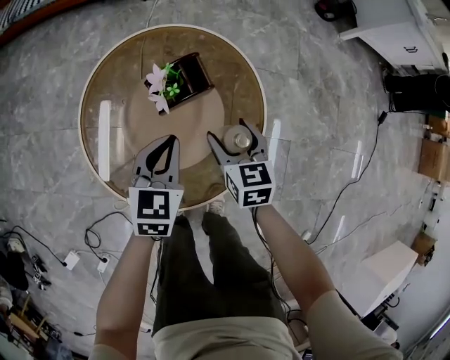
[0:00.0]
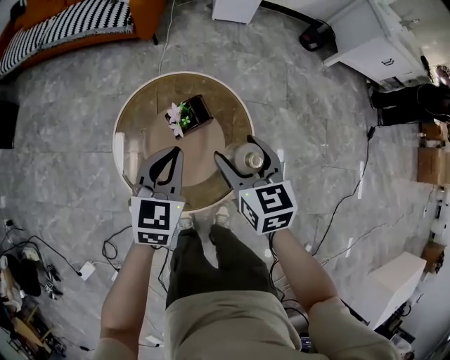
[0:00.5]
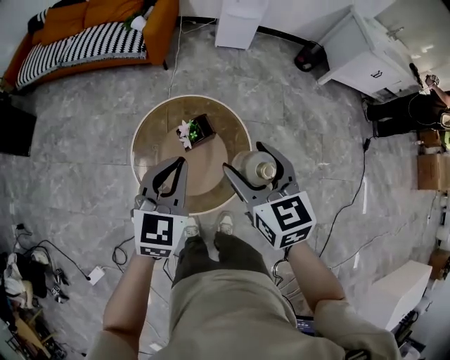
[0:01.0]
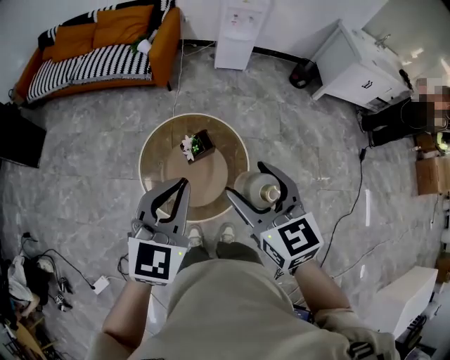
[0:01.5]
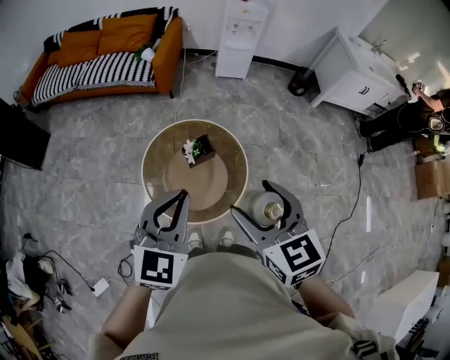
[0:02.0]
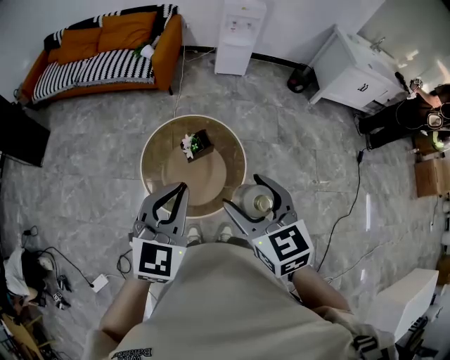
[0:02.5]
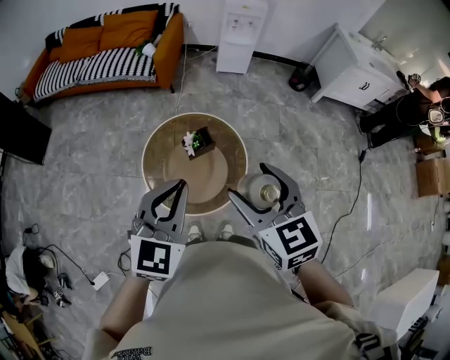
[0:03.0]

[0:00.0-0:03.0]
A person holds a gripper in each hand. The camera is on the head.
0:00.0 to 0:01.5: The two grippers go roughly 50 cm upward. The right gripper turns by about 20 degrees; the left gripper rotates approximately 20 degrees.
0:01.5 to 0:03.0: Both grippers travel together backward, approximately 5 cm.

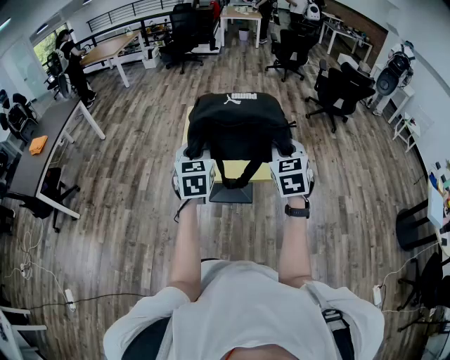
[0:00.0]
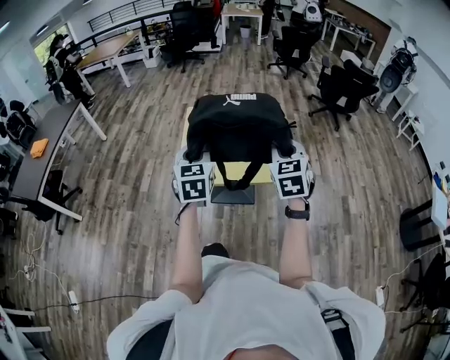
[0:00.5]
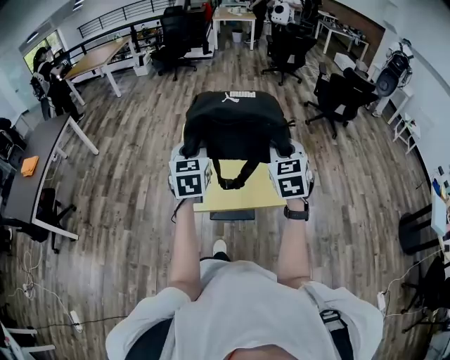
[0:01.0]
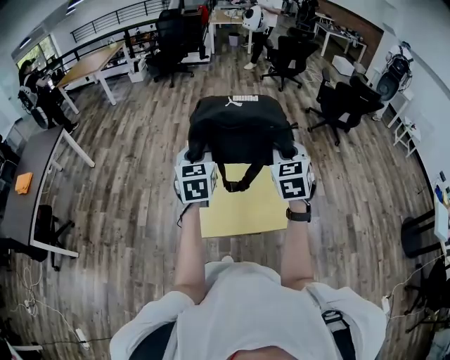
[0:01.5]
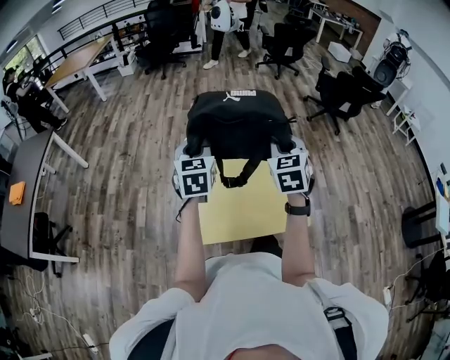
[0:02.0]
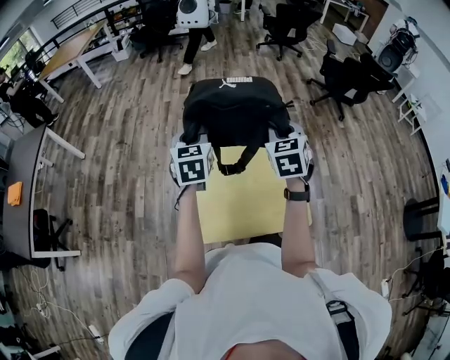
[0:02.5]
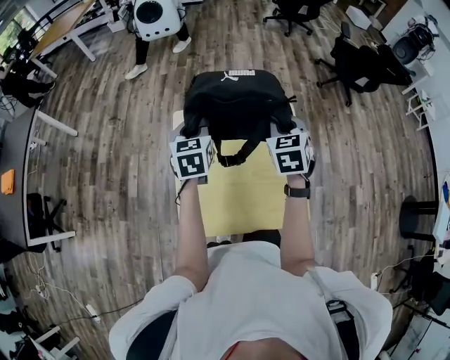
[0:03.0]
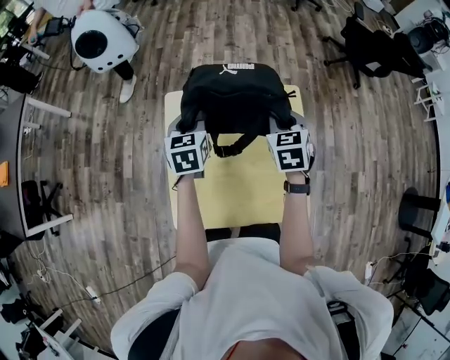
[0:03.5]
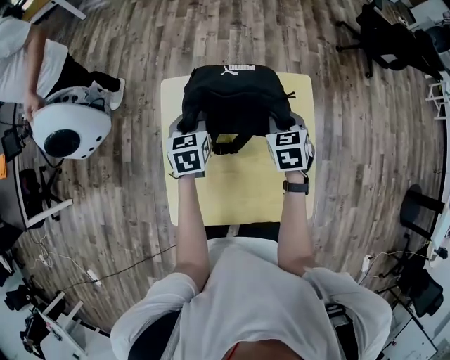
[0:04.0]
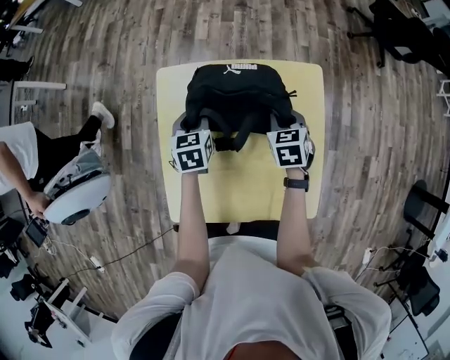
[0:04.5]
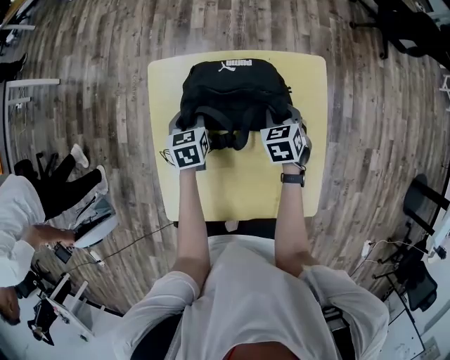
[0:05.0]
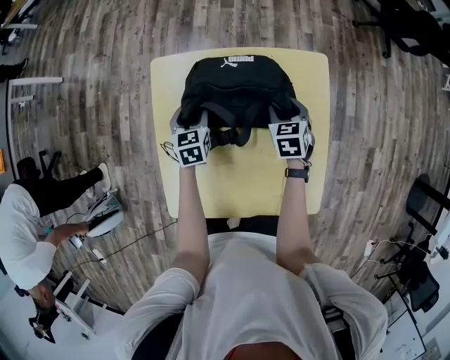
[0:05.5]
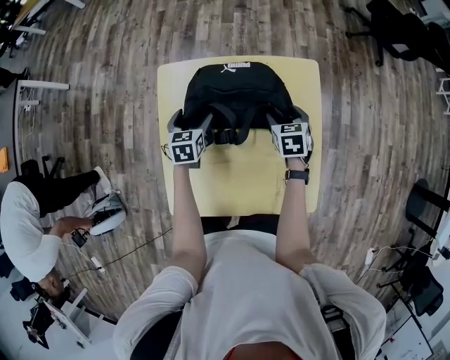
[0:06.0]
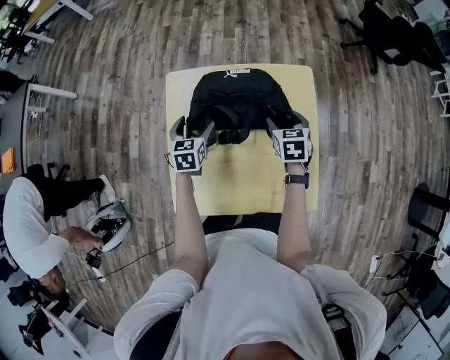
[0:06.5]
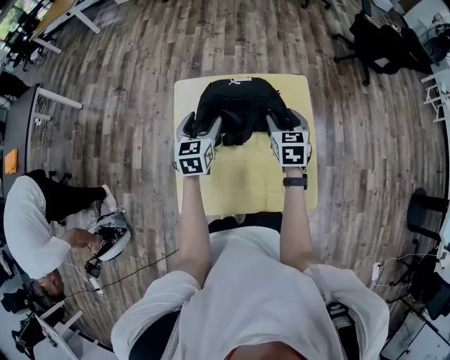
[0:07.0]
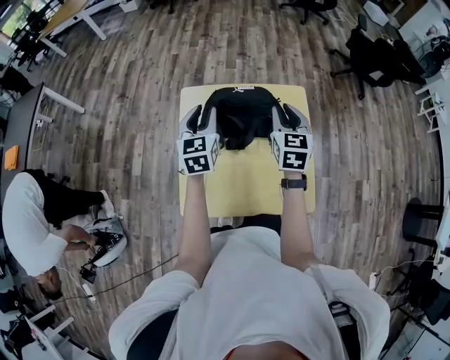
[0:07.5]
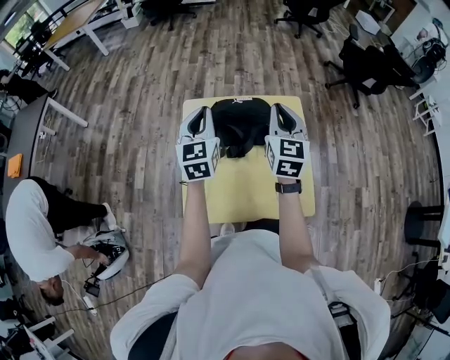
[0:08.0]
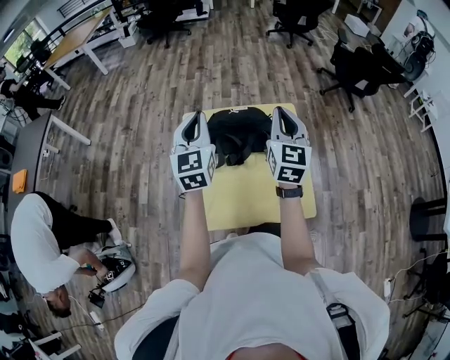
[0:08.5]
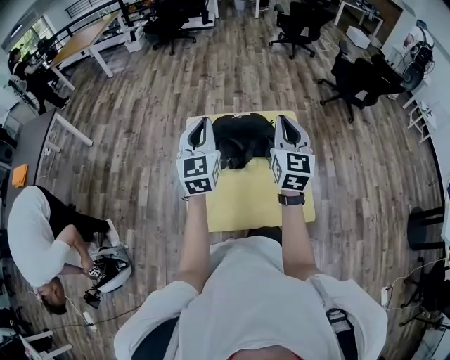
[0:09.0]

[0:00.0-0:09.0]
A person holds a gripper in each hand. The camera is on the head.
0:00.0 to 0:02.0: The grippers both shift forward by approximately 35 cm.
0:02.0 to 0:04.5: Both grippers move downward and forward, some 40 cm. The right gripper rotates some 30 degrees; the left gripper changes its angle by approximately 30 degrees.
0:04.5 to 0:07.0: Both grippers move upward and backward, roughly 10 cm. The left gripper opens its fingers, while the right gripper opens its fingers.
0:07.0 to 0:09.0: The two grippers go approximately 20 cm upward. The right gripper tilts its fingers roughly 30 degrees upward, and closes its fingers. The left gripper changes its angle by some 30 degrees, and closes its fingers.

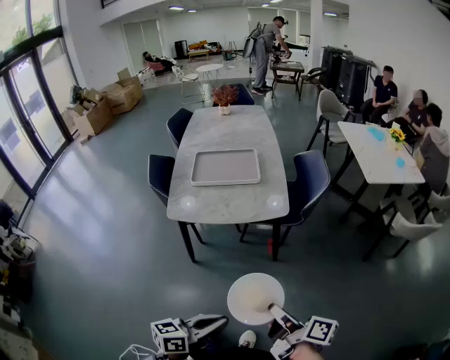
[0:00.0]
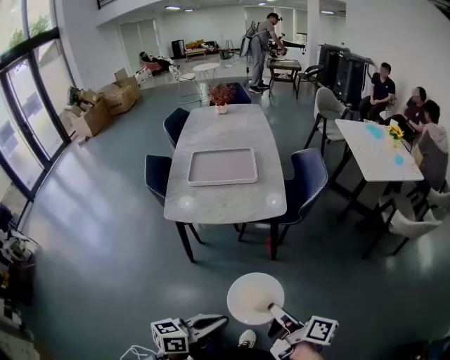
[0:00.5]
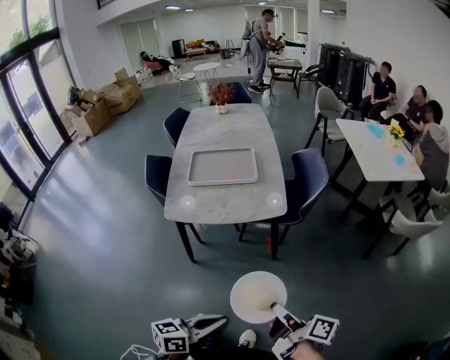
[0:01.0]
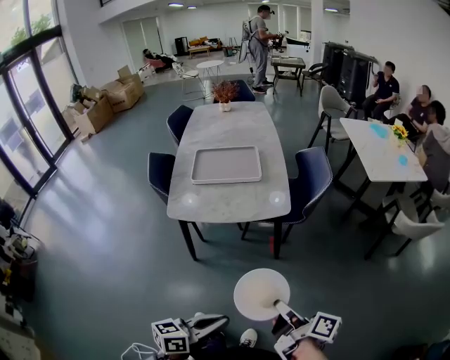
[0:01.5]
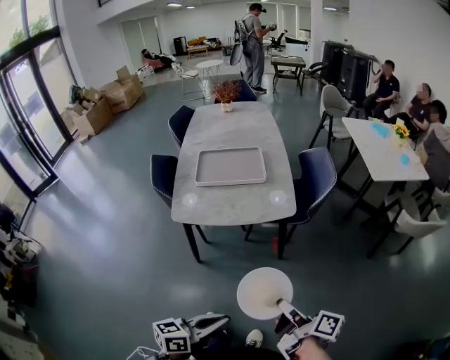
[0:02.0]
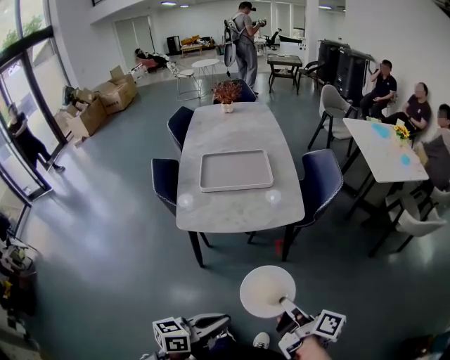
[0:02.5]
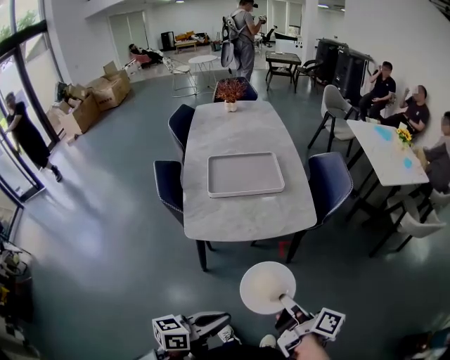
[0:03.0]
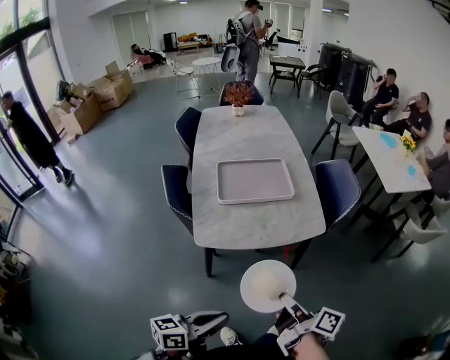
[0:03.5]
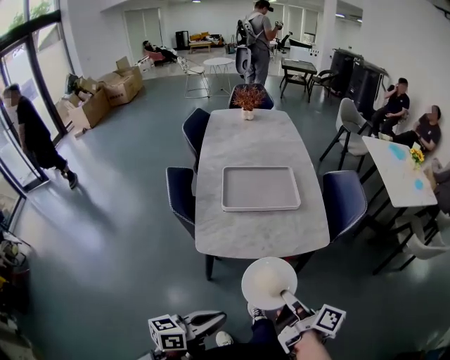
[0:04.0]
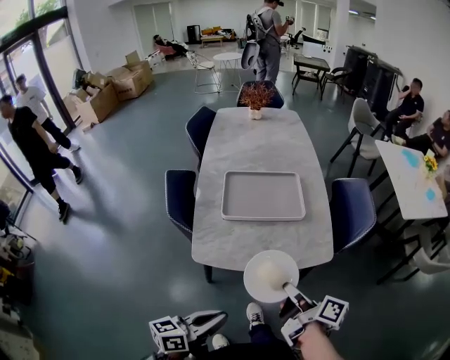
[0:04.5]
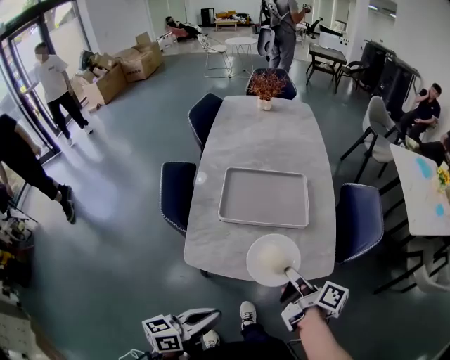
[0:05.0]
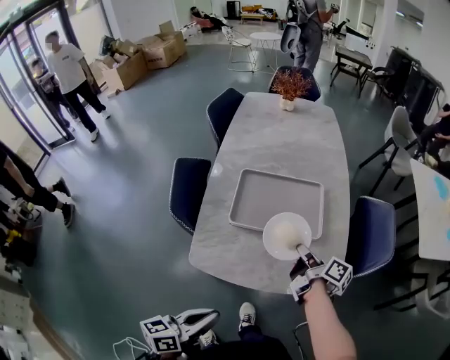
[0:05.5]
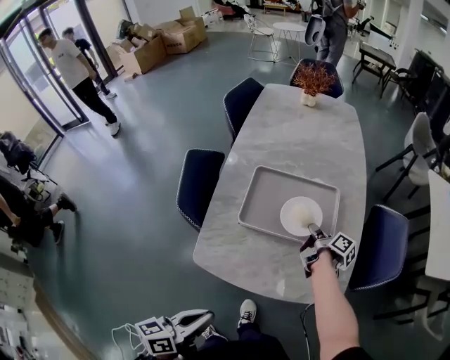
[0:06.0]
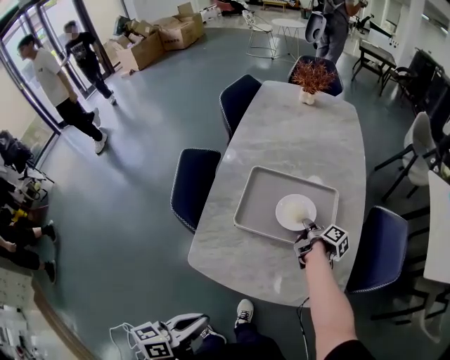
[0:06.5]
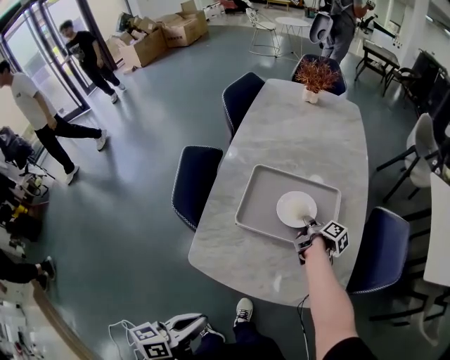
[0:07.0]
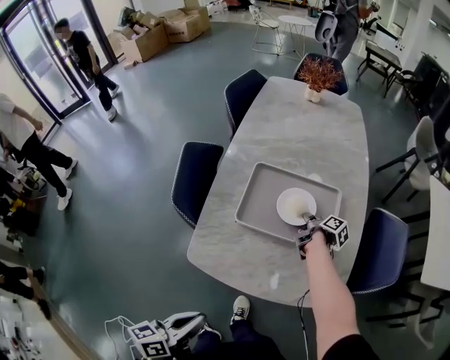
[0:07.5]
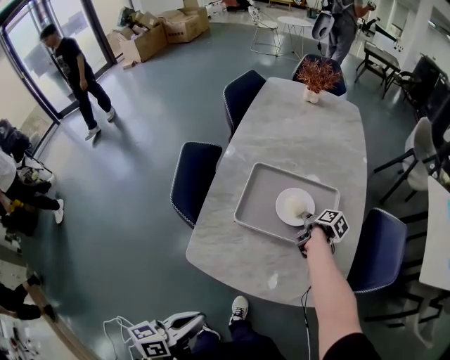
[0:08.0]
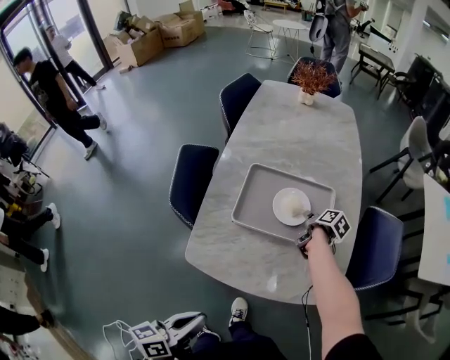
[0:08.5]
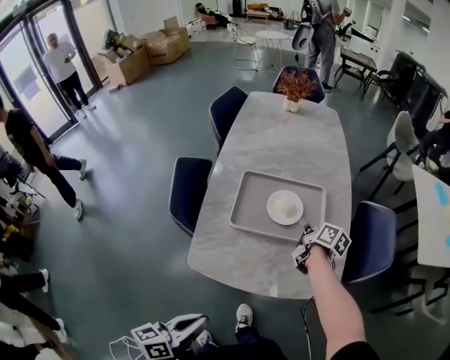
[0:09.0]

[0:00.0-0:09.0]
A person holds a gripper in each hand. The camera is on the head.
0:02.0 to 0:04.5: The left gripper shifts by about 25 cm.
0:04.5 to 0:07.0: The left gripper ends up some 10 cm from where it was, and turns by some 30 degrees.

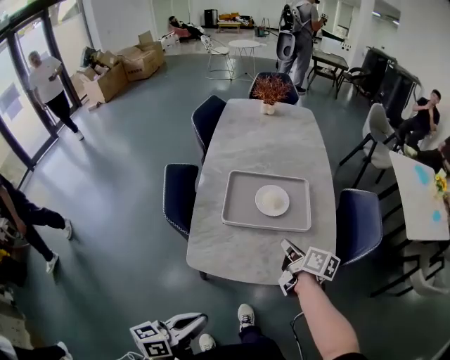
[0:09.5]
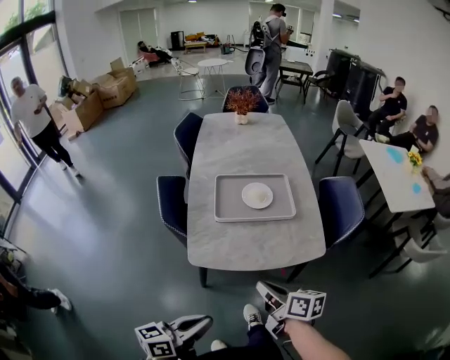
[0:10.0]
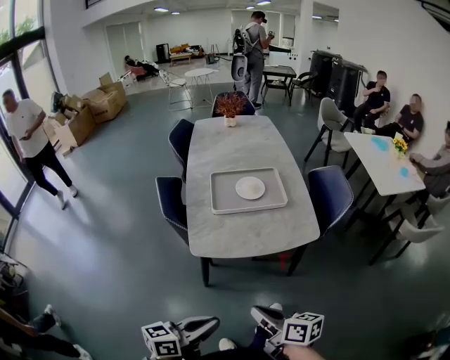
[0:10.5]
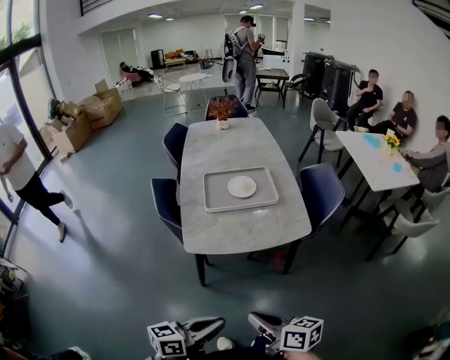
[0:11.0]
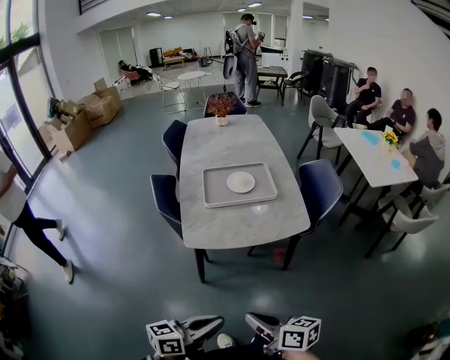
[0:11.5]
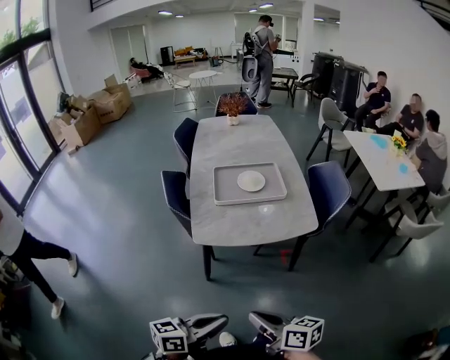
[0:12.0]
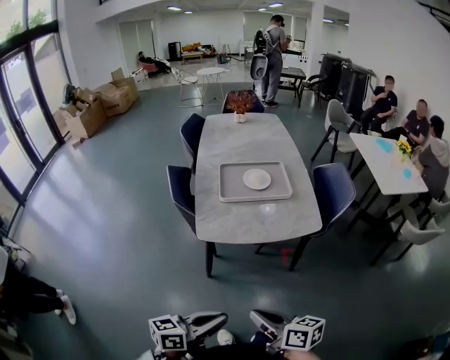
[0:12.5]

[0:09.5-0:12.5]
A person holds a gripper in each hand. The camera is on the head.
0:09.5 to 0:11.0: The left gripper changes place by some 15 cm, and turns by approximately 20 degrees.

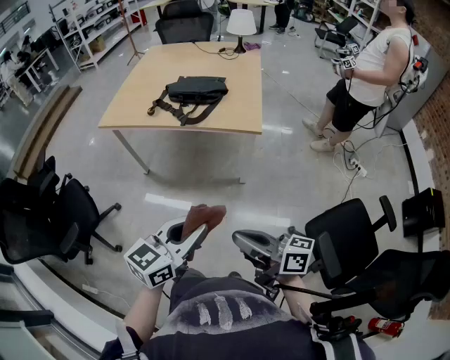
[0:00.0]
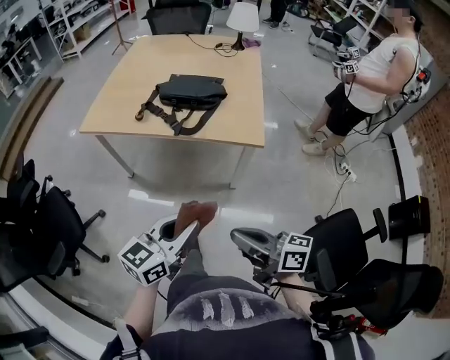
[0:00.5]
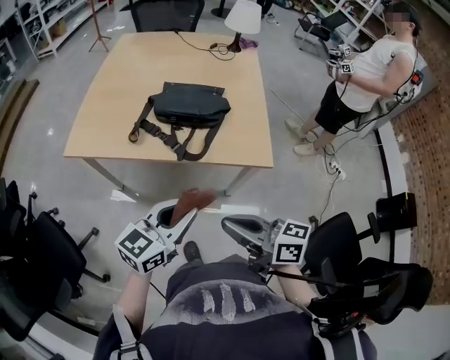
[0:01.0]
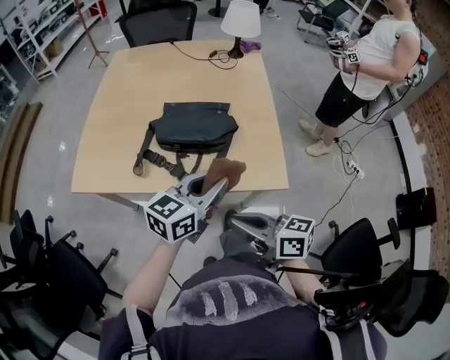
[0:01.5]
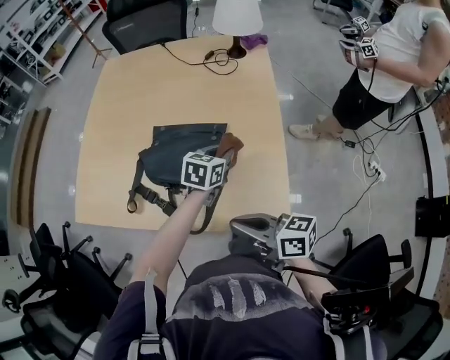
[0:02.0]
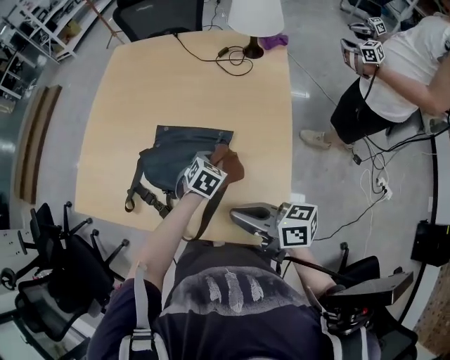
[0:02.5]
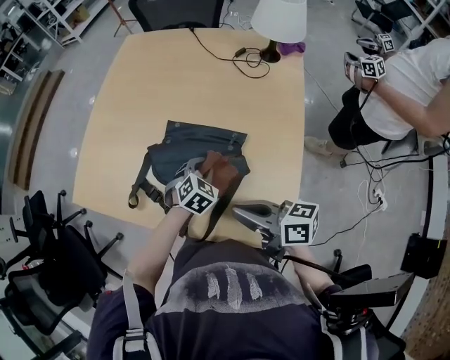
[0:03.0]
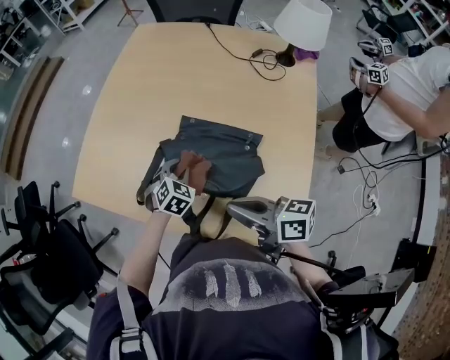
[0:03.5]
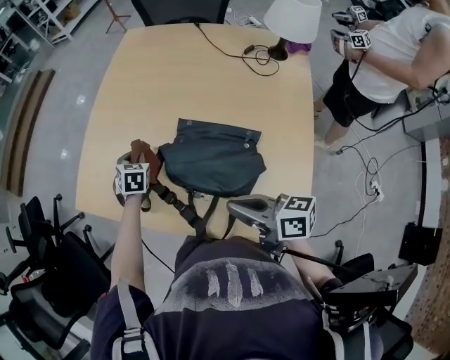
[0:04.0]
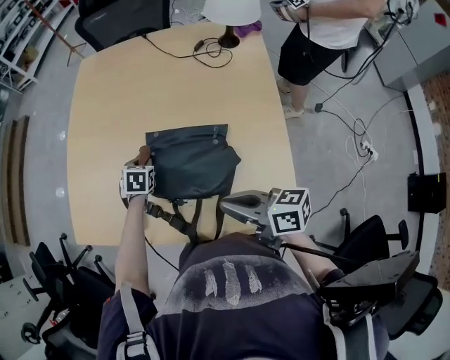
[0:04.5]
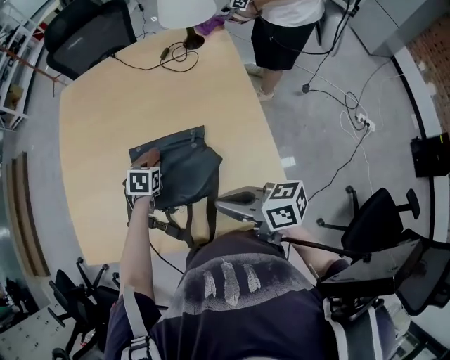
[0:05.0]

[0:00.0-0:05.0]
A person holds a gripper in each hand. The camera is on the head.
0:00.0 to 0:02.5: Both grippers are carried forward, some 70 cm. The left gripper points its fingers roughly 50 degrees further downward.
